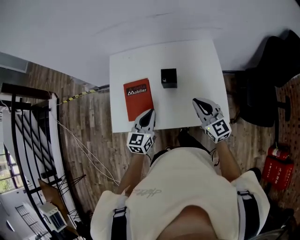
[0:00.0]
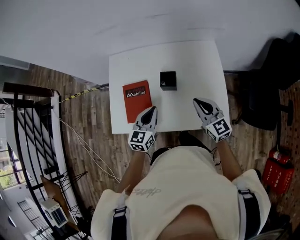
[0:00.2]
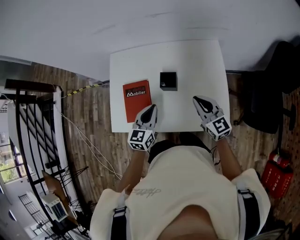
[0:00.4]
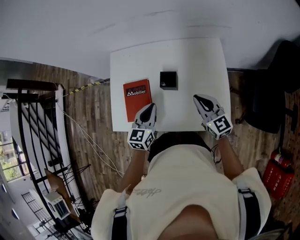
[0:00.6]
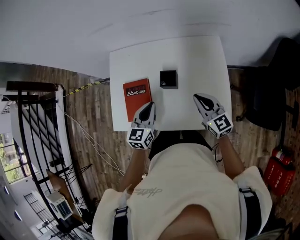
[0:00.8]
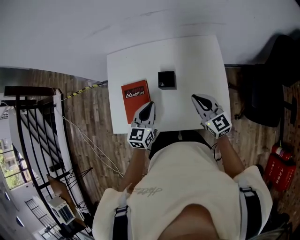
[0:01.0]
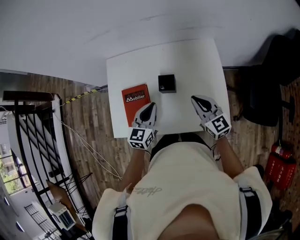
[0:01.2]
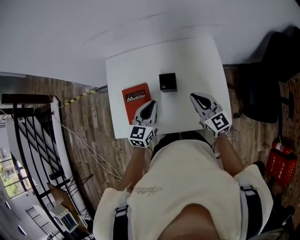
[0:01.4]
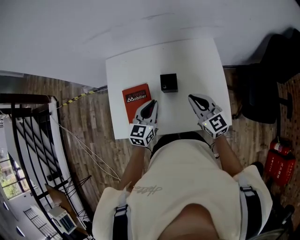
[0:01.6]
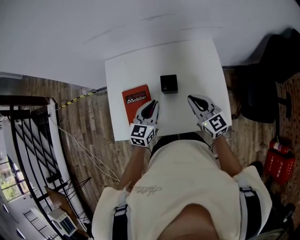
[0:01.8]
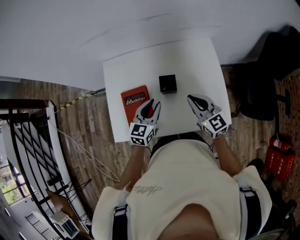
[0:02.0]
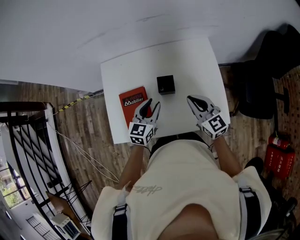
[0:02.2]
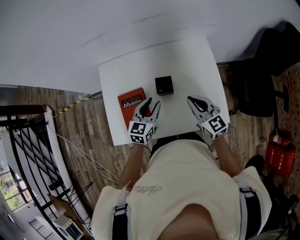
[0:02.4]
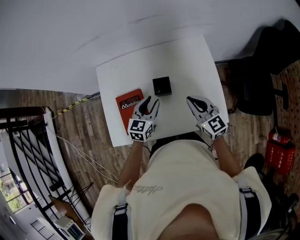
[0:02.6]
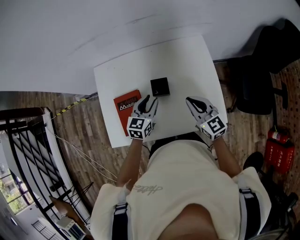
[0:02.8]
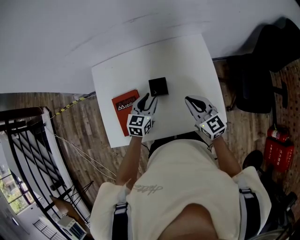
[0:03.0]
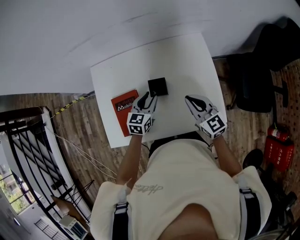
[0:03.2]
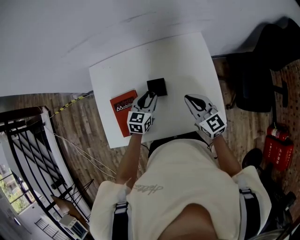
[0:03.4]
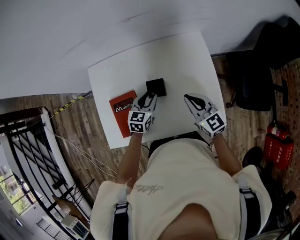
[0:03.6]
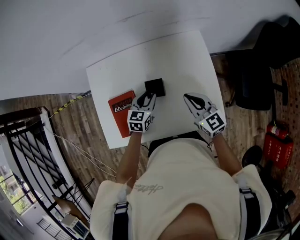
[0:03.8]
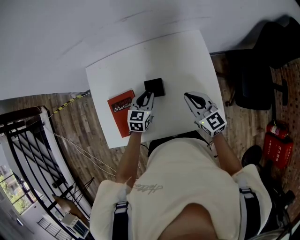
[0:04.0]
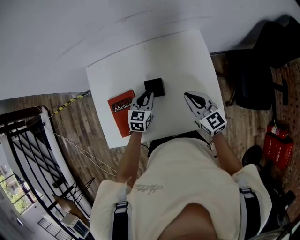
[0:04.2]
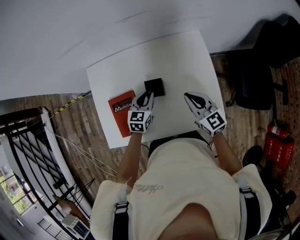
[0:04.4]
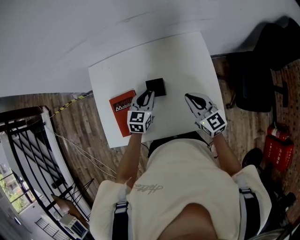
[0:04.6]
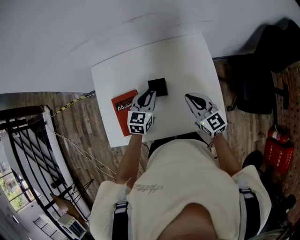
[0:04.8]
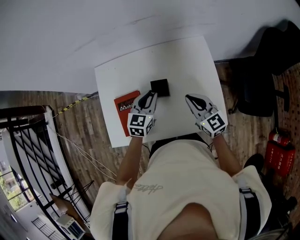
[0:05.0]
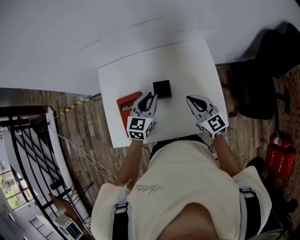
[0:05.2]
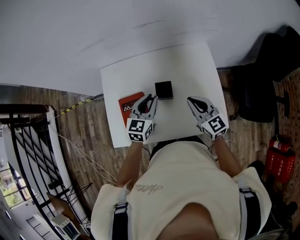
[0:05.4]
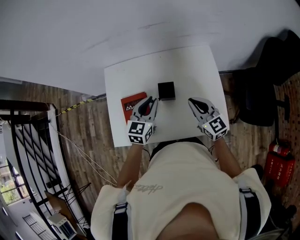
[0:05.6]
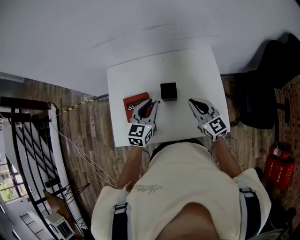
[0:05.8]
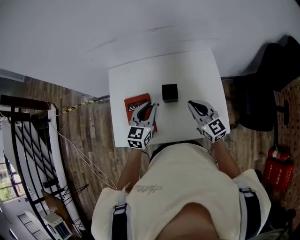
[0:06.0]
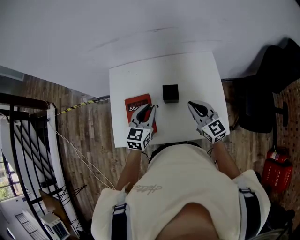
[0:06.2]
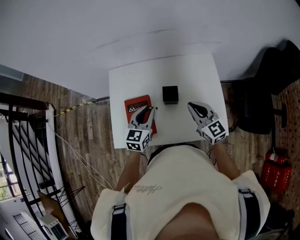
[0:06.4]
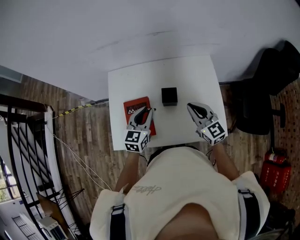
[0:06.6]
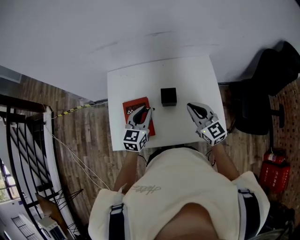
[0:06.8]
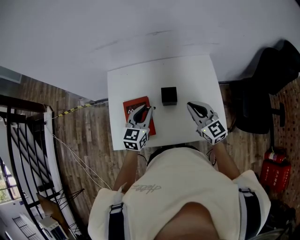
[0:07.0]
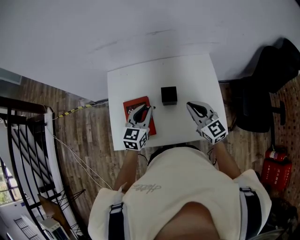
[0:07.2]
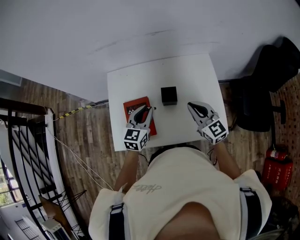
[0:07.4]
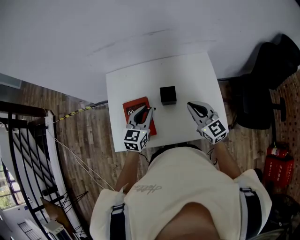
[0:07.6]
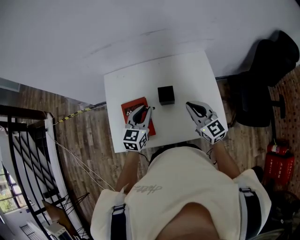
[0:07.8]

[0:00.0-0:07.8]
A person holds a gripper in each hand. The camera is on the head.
0:00.0 to 0:01.6: The two grippers go about 5 cm forward.
0:01.6 to 0:03.2: The left gripper goes approximately 10 cm downward and forward, and opens its fingers.
0:03.2 to 0:04.6: There are only small adjustments of the grippers.
0:04.6 to 0:06.2: The left gripper moves upward, to the left and backward, roughly 15 cm. Meanwhile the right gripper moves to the left, approximately 5 cm.
0:06.2 to 0:07.8: The grippers make only small movements.

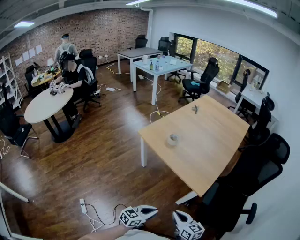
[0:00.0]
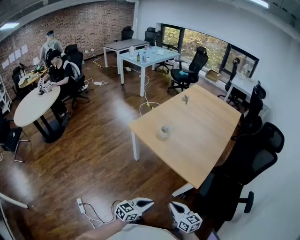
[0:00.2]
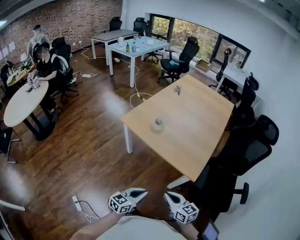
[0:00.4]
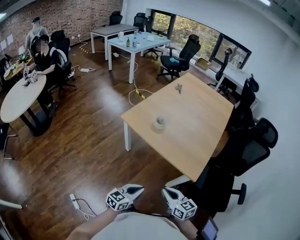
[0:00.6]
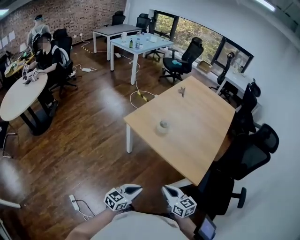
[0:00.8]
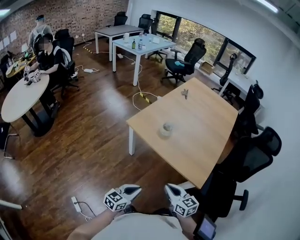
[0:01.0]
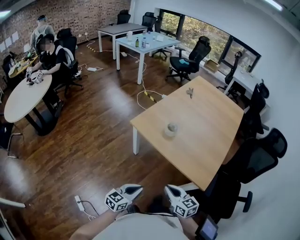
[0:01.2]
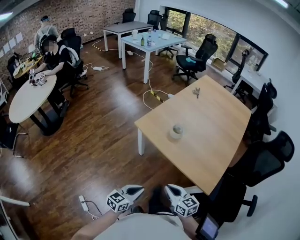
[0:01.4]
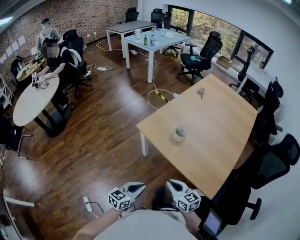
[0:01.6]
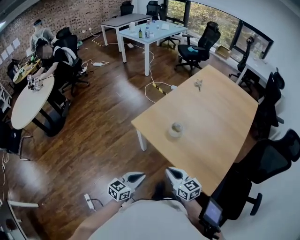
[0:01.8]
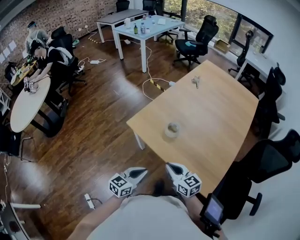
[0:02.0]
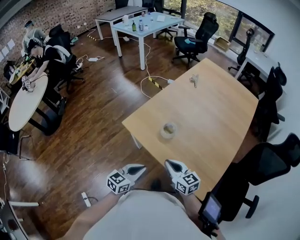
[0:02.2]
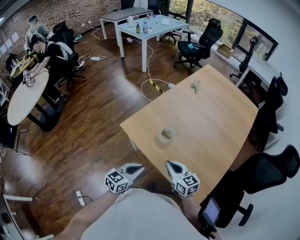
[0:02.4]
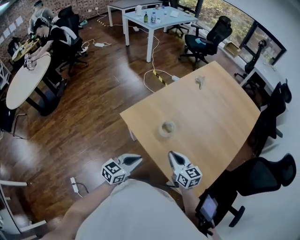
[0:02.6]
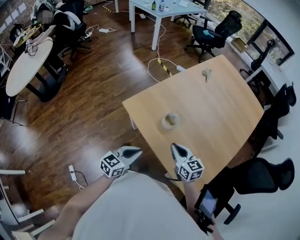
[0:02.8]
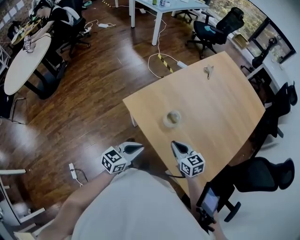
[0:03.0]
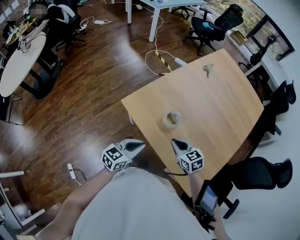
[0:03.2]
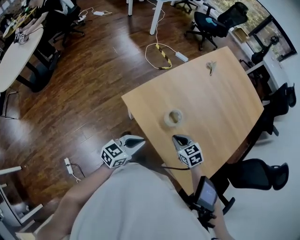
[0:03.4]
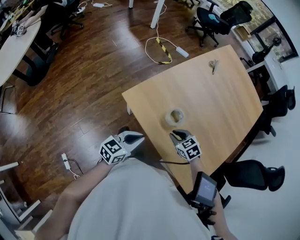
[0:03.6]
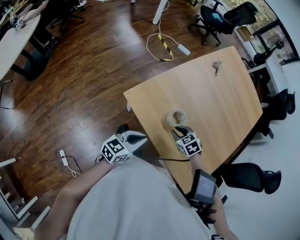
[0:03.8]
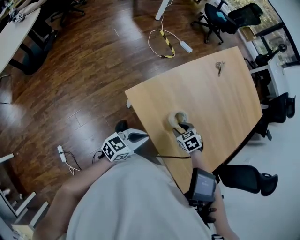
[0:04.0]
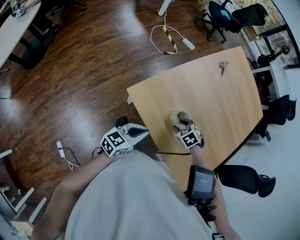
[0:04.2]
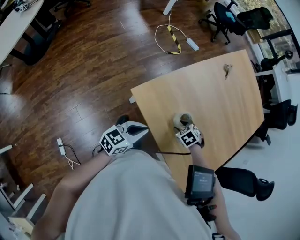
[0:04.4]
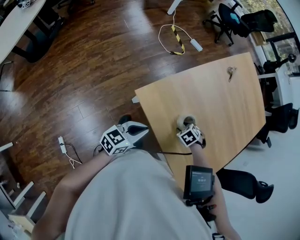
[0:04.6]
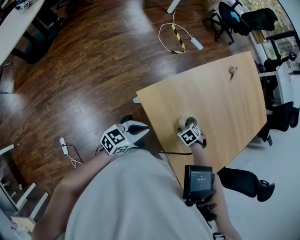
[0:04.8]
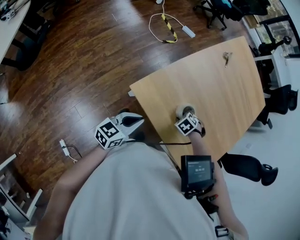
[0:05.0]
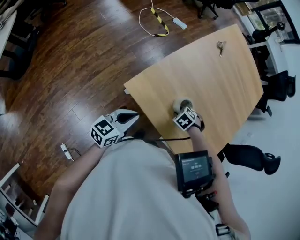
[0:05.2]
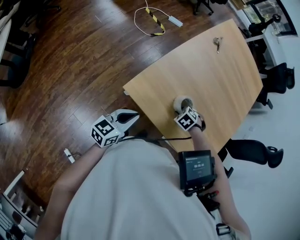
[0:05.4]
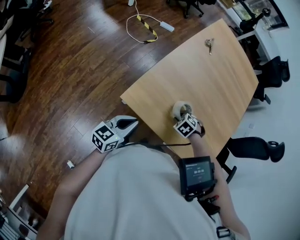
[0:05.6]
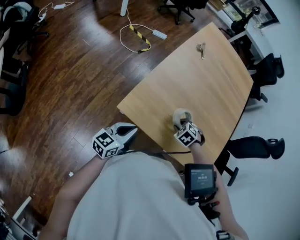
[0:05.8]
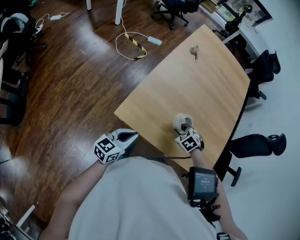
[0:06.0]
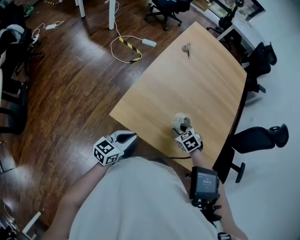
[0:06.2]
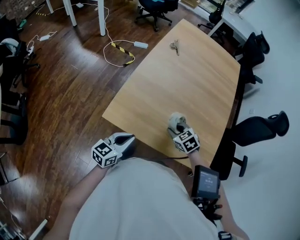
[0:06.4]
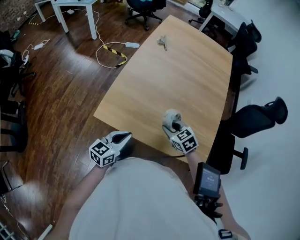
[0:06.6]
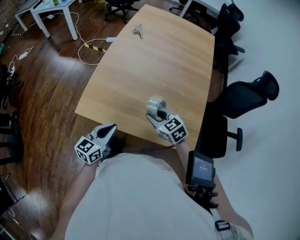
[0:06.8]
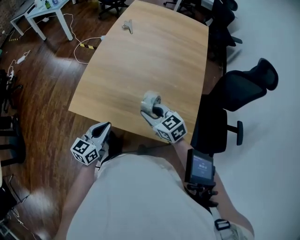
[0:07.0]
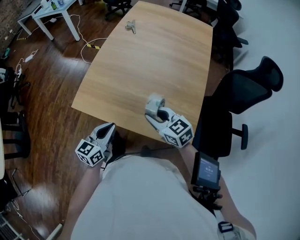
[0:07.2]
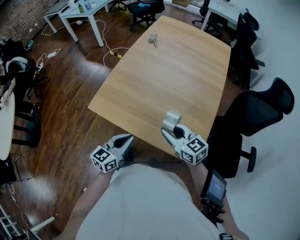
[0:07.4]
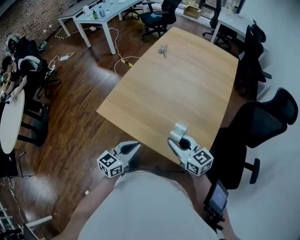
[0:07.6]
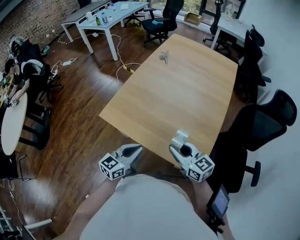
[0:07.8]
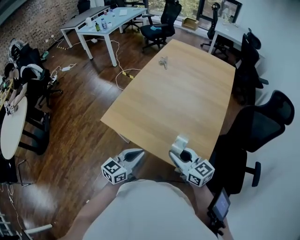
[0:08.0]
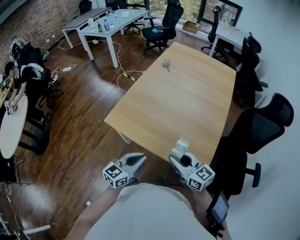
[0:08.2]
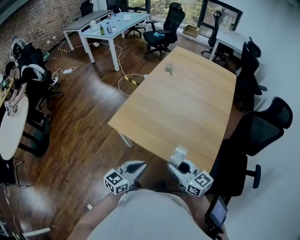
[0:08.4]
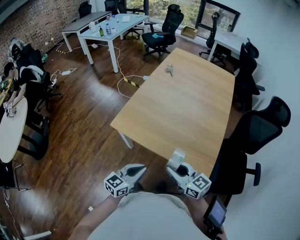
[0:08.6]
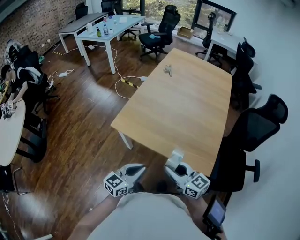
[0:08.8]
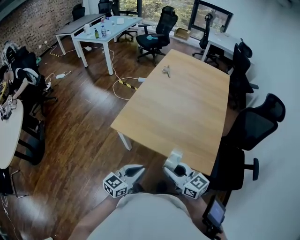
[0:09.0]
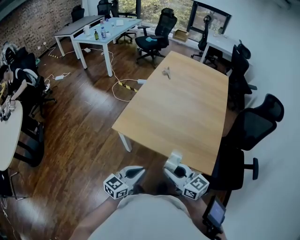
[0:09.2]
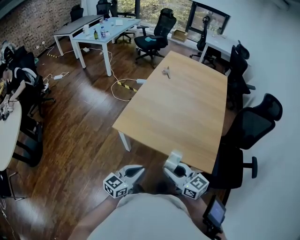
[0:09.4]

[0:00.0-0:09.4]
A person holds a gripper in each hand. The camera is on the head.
0:00.0 to 0:01.6: Both grippers move forward and to the left, some 30 cm.
0:01.6 to 0:03.2: Both grippers travel together forward, about 20 cm. The right gripper turns by roughly 20 degrees.
0:03.2 to 0:04.8: The right gripper goes roughly 15 cm downward, tilts its fingers approximately 50 degrees downward, and opens its fingers. The left gripper ends up approximately 15 cm from where it was.
0:04.8 to 0:06.2: The right gripper is displaced upward by about 10 cm, and swivels about 30 degrees.
0:06.2 to 0:07.8: The left gripper shifts approximately 25 cm to the right and backward. Meanwhile the right gripper heads upward, backward and to the right, covering about 25 cm, and tips its fingers upward by some 60 degrees.
0:07.8 to 0:09.4: Both grippers move to the left and backward, some 20 cm.

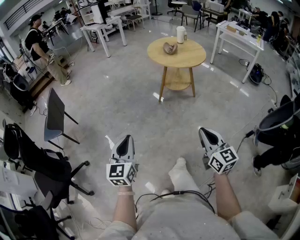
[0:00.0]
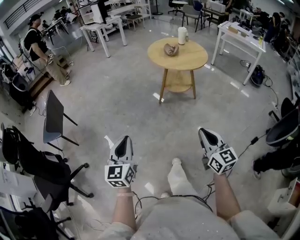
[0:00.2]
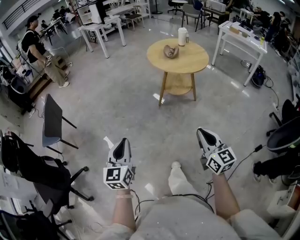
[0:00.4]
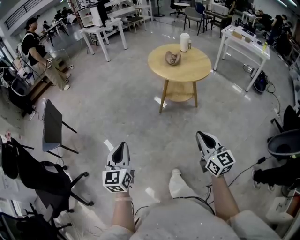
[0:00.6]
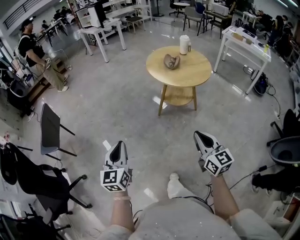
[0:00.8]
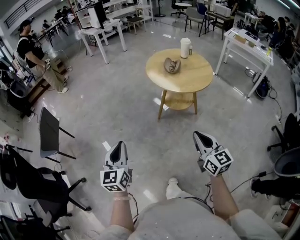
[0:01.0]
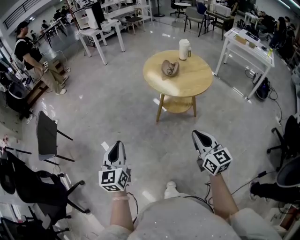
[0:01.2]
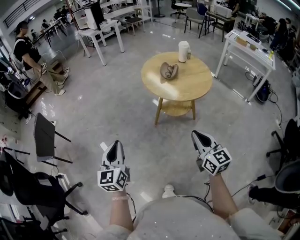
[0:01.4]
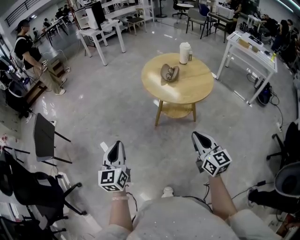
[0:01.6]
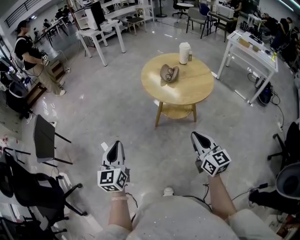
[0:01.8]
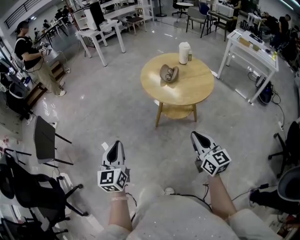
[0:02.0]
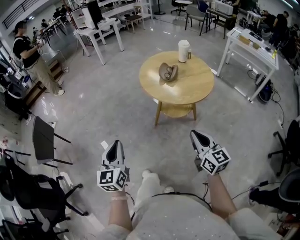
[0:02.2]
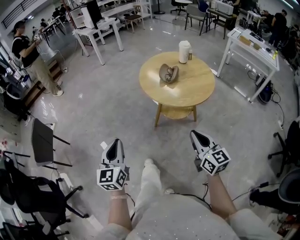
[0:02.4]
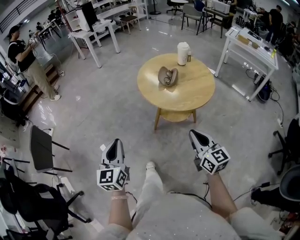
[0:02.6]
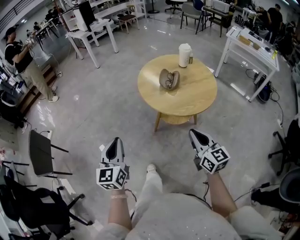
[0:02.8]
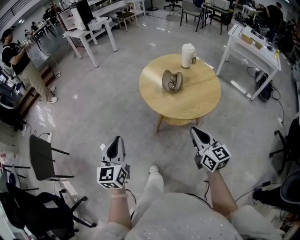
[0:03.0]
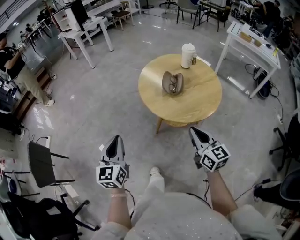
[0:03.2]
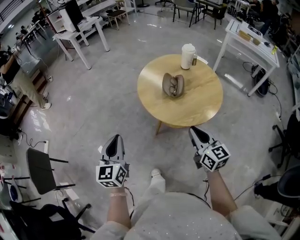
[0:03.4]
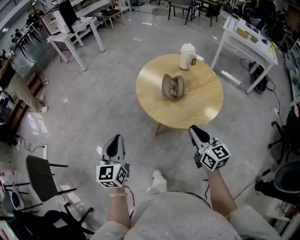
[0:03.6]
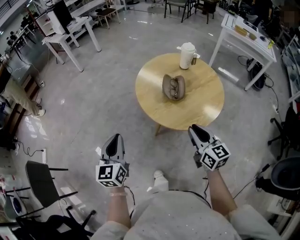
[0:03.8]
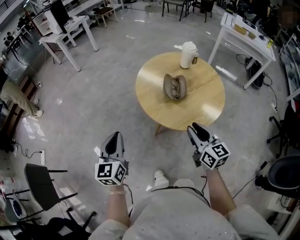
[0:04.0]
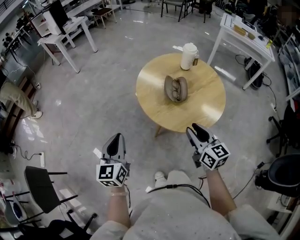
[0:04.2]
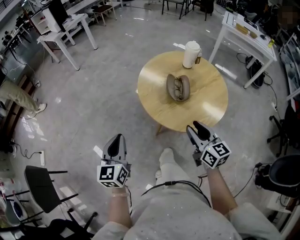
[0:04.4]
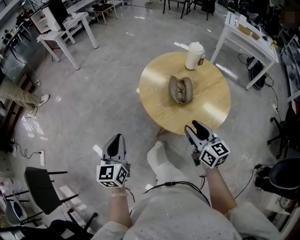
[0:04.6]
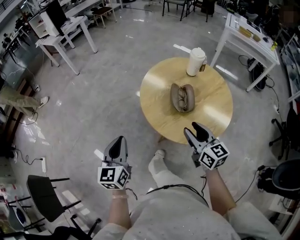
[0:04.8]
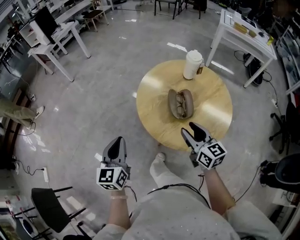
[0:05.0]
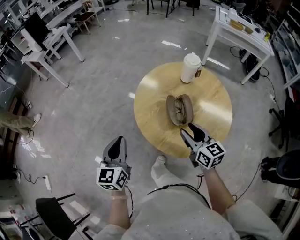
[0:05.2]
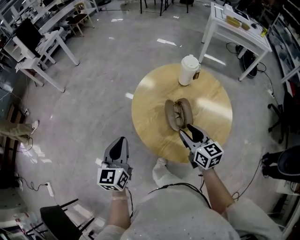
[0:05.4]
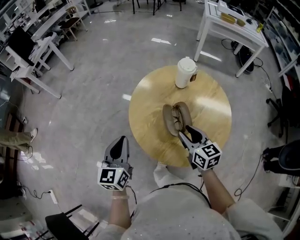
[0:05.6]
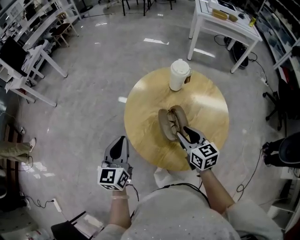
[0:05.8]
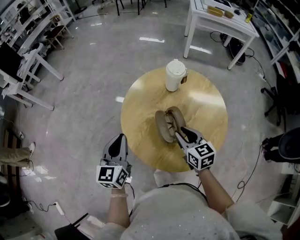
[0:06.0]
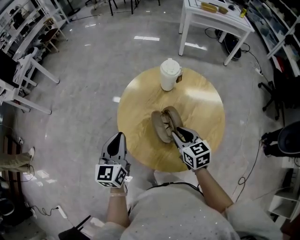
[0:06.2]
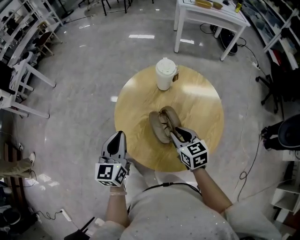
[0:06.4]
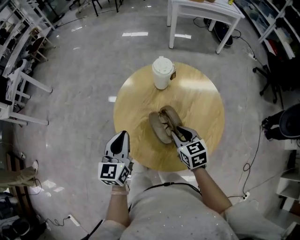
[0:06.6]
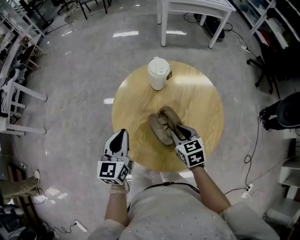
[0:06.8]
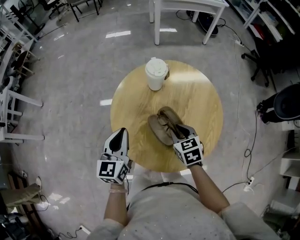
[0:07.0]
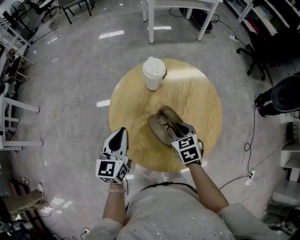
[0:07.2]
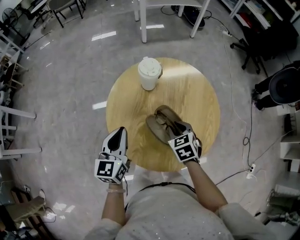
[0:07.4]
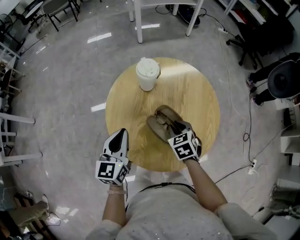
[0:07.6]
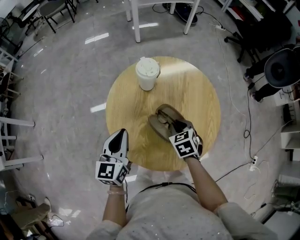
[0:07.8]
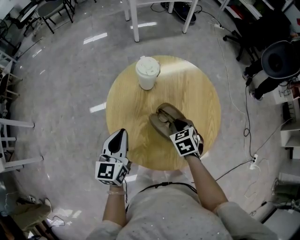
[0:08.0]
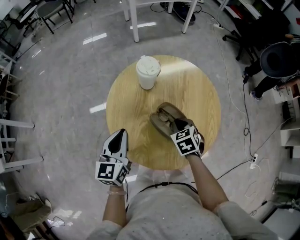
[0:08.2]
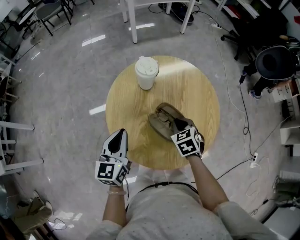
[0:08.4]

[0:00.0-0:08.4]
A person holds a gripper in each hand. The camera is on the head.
0:00.0 to 0:01.4: The grippers both shift forward by some 30 cm.
0:01.4 to 0:02.8: Both grippers move forward, approximately 15 cm.
0:02.8 to 0:04.2: Both grippers travel together forward, some 20 cm. The right gripper opens up.
0:04.2 to 0:05.6: Both grippers move forward, about 20 cm.
0:05.6 to 0:07.0: The right gripper moves downward, about 5 cm, and rotates approximately 30 degrees. The left gripper moves approximately 15 cm, and turns by some 30 degrees.
0:07.0 to 0:08.4: The grippers make only small movements.
